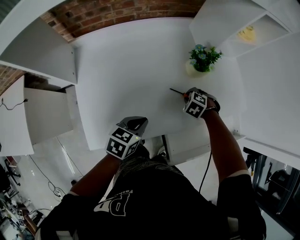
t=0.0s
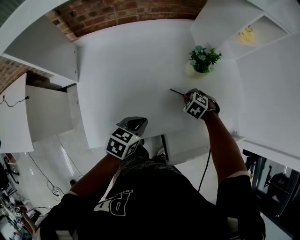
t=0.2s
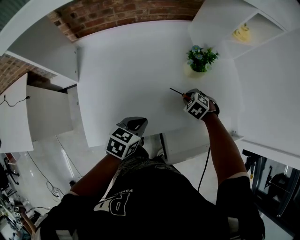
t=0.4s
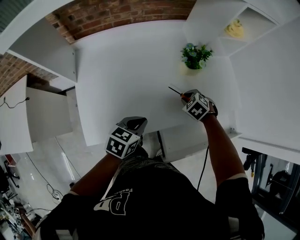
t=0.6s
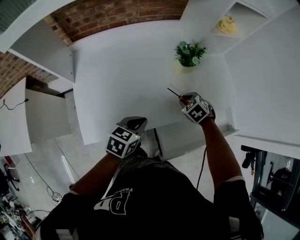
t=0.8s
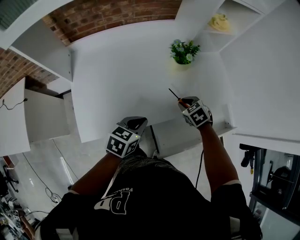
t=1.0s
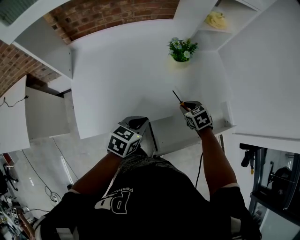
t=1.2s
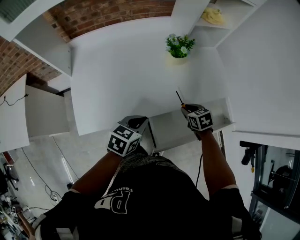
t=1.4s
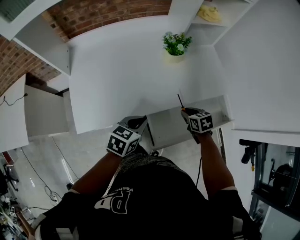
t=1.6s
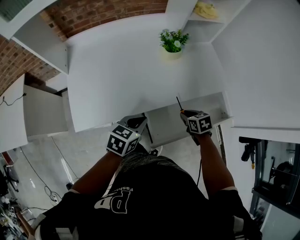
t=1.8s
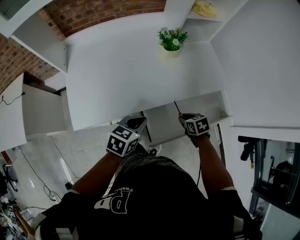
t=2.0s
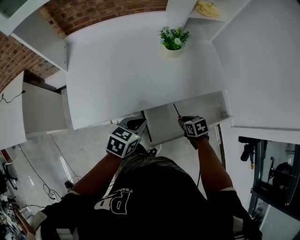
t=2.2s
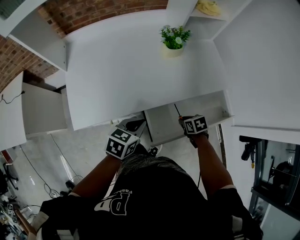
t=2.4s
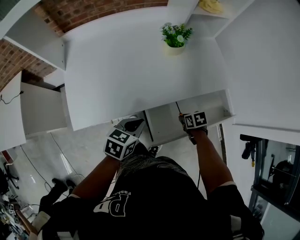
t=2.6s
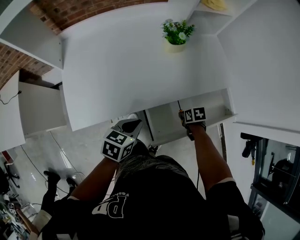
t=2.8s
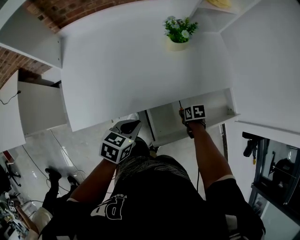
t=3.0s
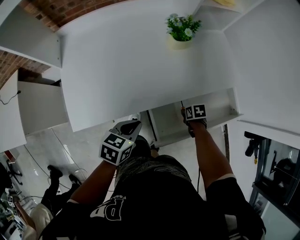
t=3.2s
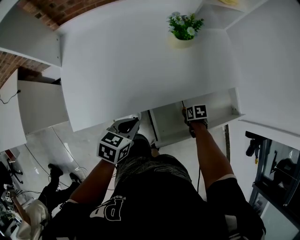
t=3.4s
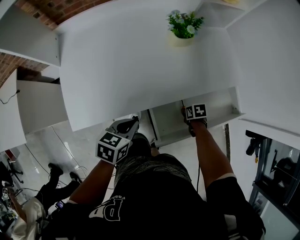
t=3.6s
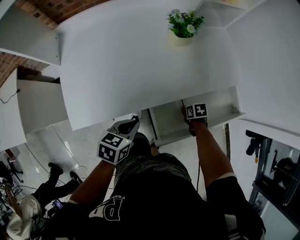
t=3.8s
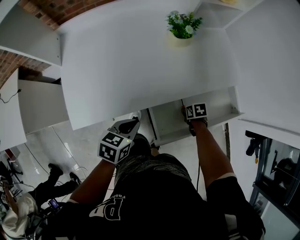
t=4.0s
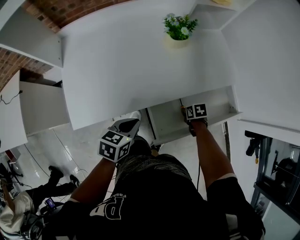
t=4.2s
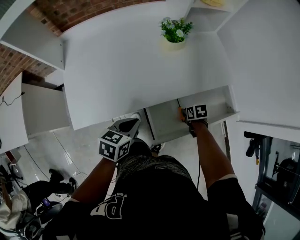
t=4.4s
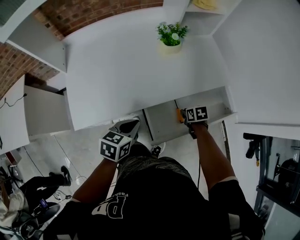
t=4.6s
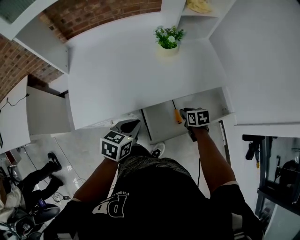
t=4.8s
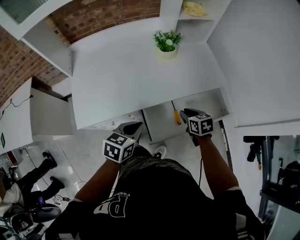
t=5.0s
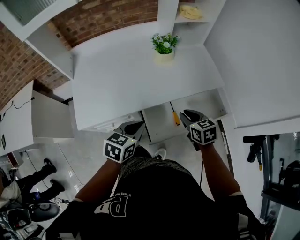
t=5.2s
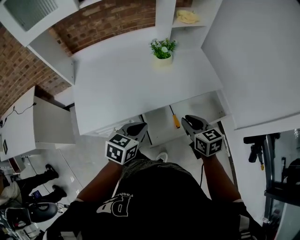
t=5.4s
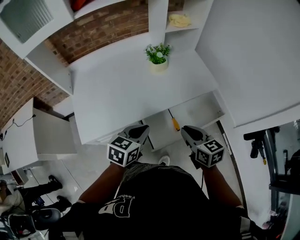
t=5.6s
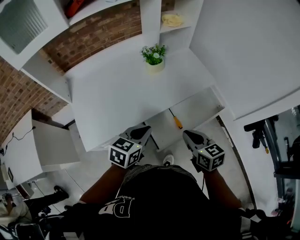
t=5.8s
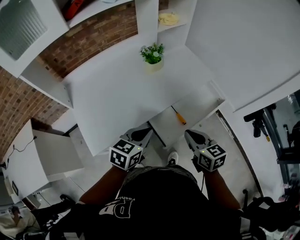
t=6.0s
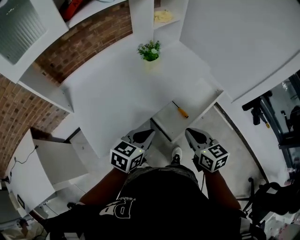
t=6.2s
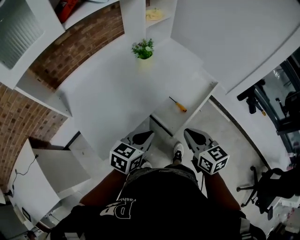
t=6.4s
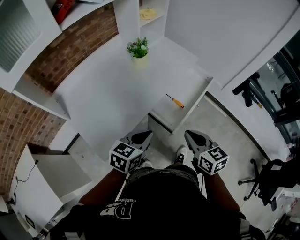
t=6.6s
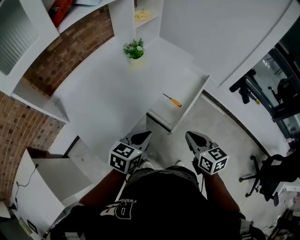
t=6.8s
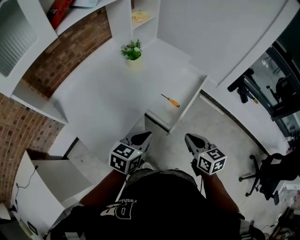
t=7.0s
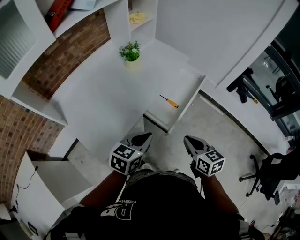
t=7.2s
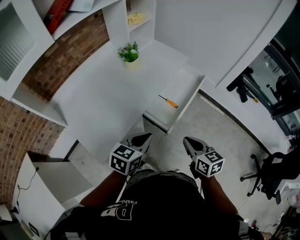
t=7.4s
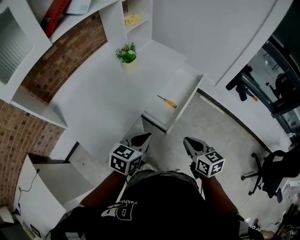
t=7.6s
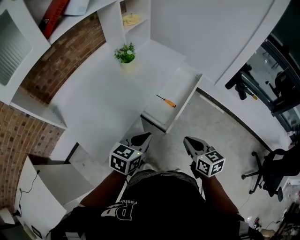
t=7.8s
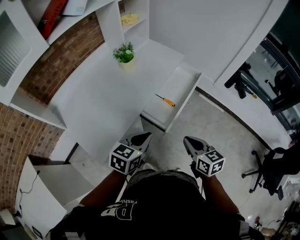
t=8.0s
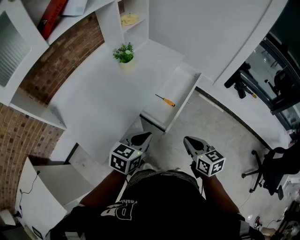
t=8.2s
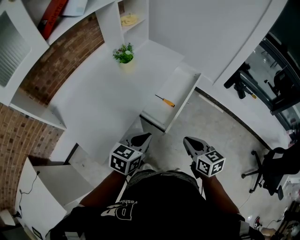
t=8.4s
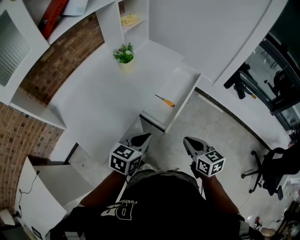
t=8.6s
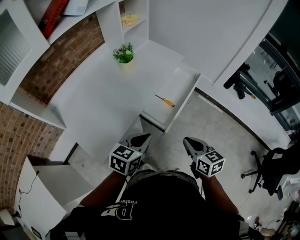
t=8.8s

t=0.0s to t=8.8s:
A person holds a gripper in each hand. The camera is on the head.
t=0.0s to t=1.4s: The left gripper shifts by approximately 15 cm. Meanwhile the right gripper changes place by some 20 cm, and rolls clockwise, seen from behind, by about 50 degrees.
t=1.4s to t=3.0s: The right gripper moves downward and backward, some 15 cm, and rotates some 30 degrees, while the left gripper ends up approximately 5 cm from where it was.
t=3.0s to t=4.4s: The grippers stay close to where they were, moving slightly.
t=4.4s to t=5.8s: The right gripper moves upward and backward, some 30 cm, and angles its fingers upward, by some 40 degrees; the left gripper travels upward and to the right by some 10 cm, and changes its angle by some 20 degrees.
t=5.8s to t=7.4s: The left gripper changes place by about 10 cm, and turns by roughly 30 degrees; the right gripper changes place by approximately 20 cm, and rotates some 30 degrees.
t=7.4s to t=8.8s: The grippers make only small movements.

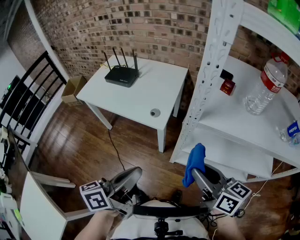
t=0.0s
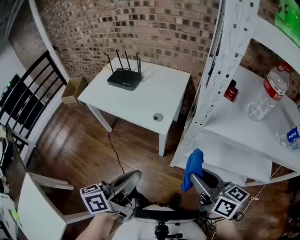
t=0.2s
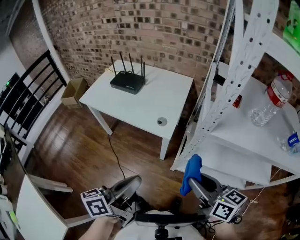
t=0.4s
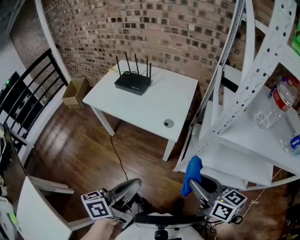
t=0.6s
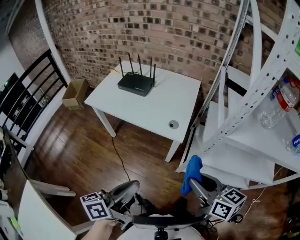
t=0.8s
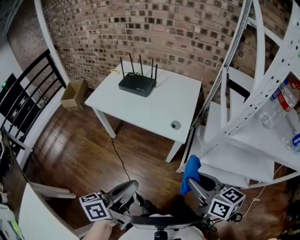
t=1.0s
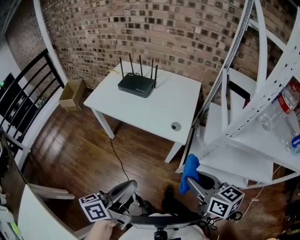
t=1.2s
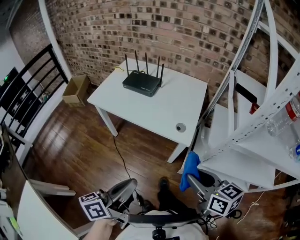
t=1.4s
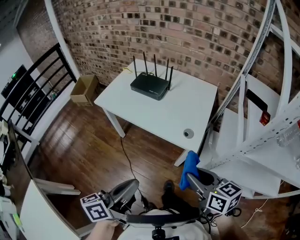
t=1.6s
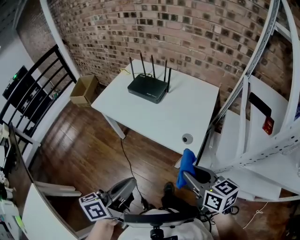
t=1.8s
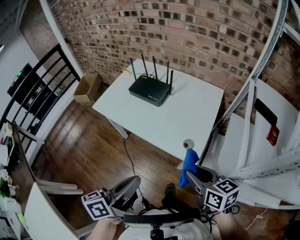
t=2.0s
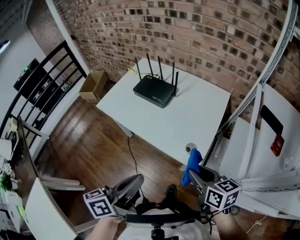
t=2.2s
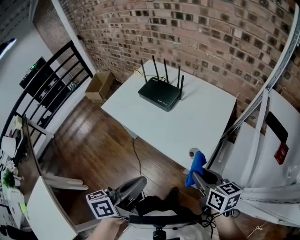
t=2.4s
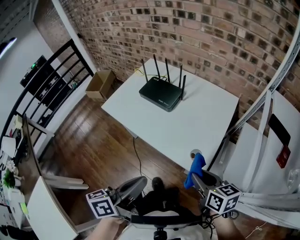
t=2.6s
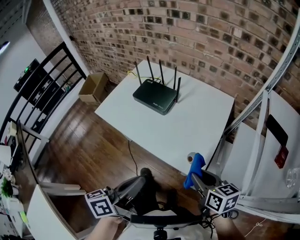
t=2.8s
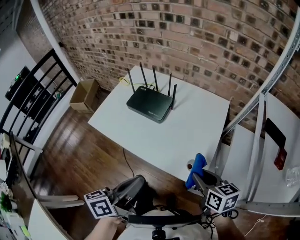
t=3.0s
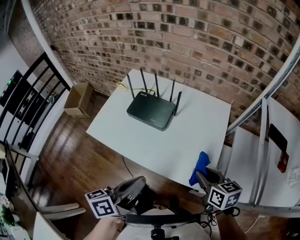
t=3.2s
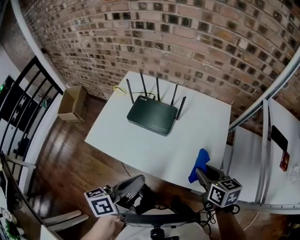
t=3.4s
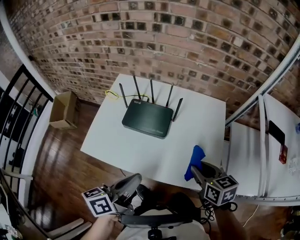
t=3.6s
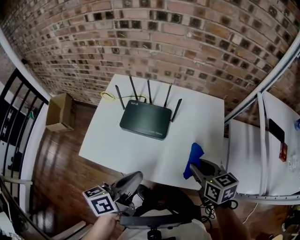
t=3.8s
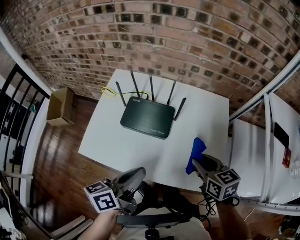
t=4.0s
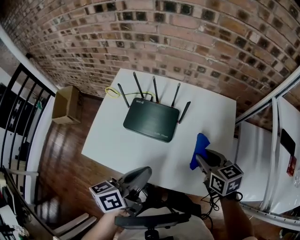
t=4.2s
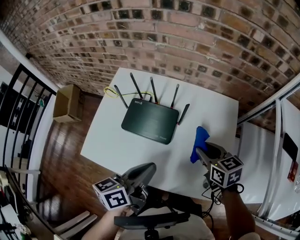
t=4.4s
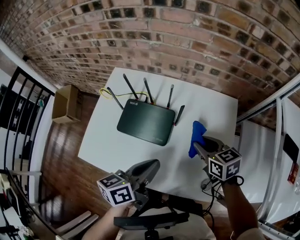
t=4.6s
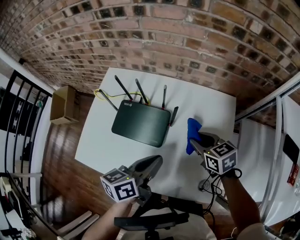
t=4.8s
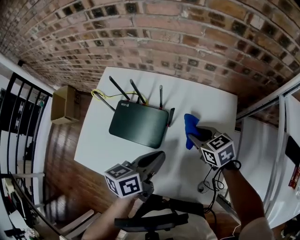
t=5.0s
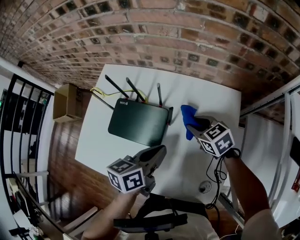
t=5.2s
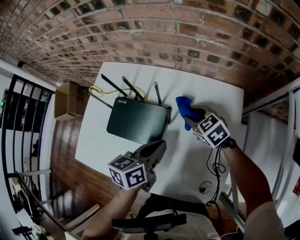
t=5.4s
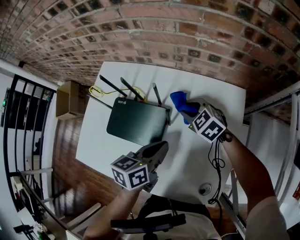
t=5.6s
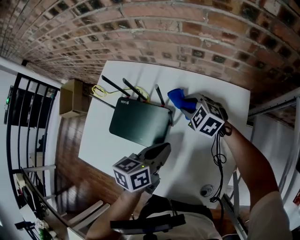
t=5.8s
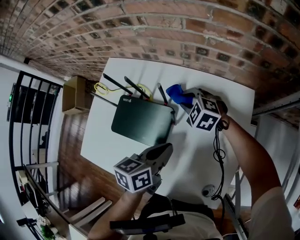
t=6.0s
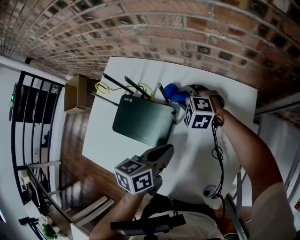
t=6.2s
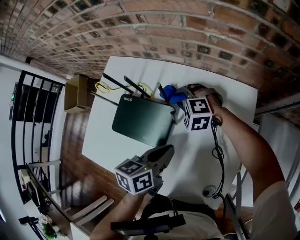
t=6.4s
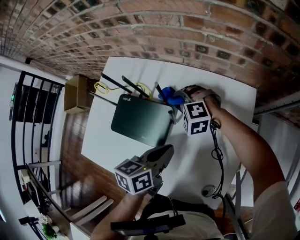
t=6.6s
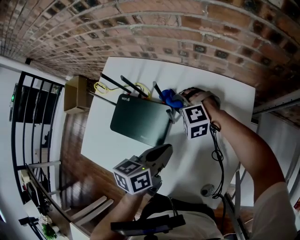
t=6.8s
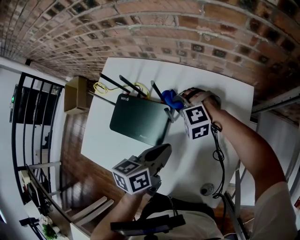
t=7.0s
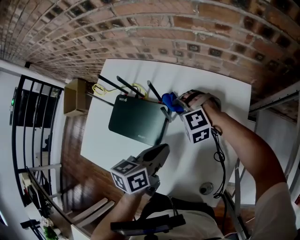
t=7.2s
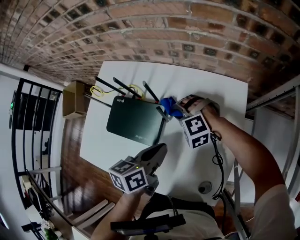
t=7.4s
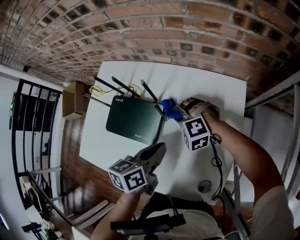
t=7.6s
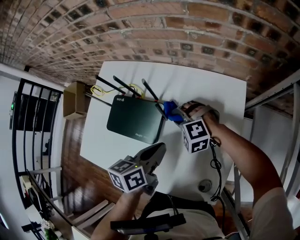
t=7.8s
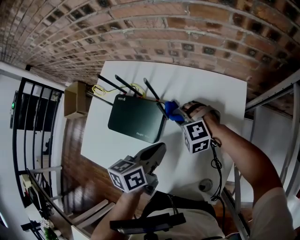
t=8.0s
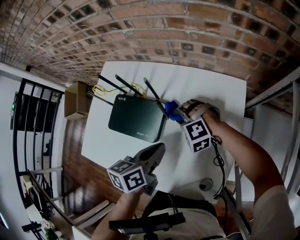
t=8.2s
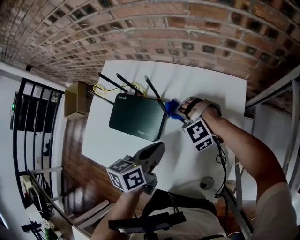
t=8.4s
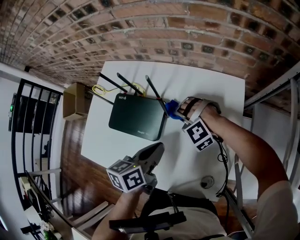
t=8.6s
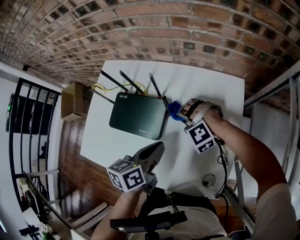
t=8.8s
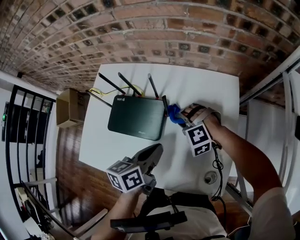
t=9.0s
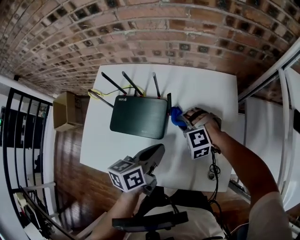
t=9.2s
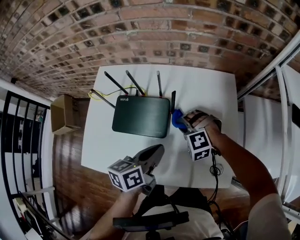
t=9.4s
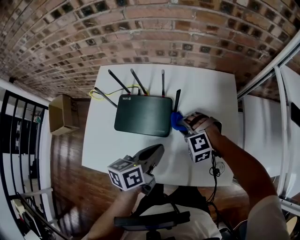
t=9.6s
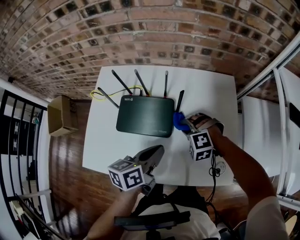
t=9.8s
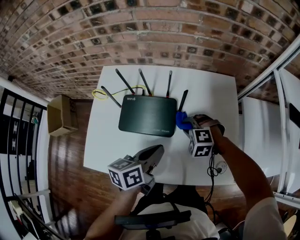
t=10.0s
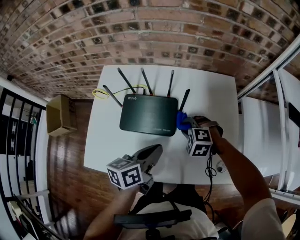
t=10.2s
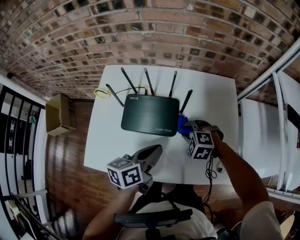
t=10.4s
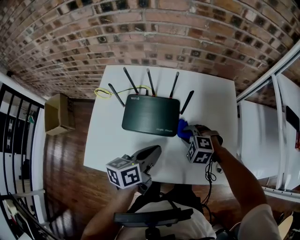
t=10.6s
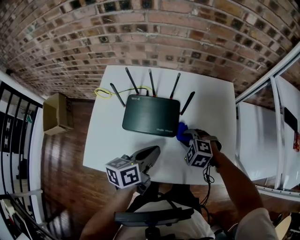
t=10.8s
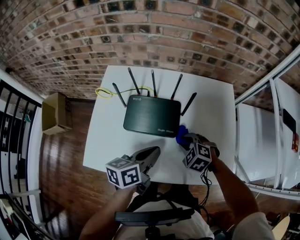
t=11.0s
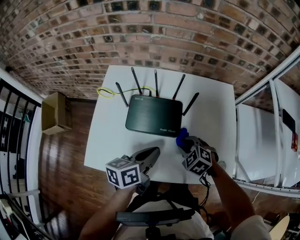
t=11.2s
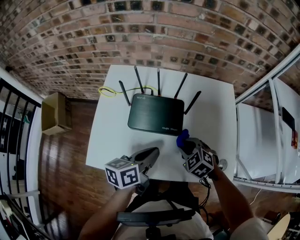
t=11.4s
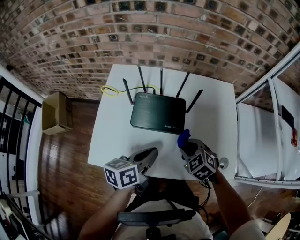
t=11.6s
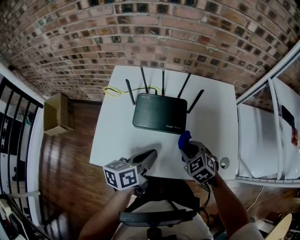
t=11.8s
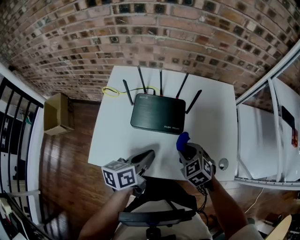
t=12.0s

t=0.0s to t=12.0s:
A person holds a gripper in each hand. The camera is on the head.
t=0.0s to t=1.6s: The left gripper moves to the left, some 25 cm. The right gripper shifts roughly 30 cm to the left and forward.
t=1.6s to t=3.0s: Both grippers move forward, about 25 cm.
t=3.0s to t=4.4s: The grippers both shift forward and to the left by about 30 cm.
t=4.4s to t=6.0s: The left gripper moves forward, to the right and downward, some 20 cm, while the right gripper moves forward and downward, roughly 25 cm, and twists some 50 degrees counterclockwise, seen from behind.
t=6.0s to t=7.6s: The right gripper shifts about 10 cm backward, and changes its angle by about 30 degrees.
t=7.6s to t=9.0s: The left gripper goes approximately 5 cm to the left. The right gripper travels backward by roughly 5 cm.
t=9.0s to t=10.4s: The right gripper is displaced backward and to the left by about 10 cm, and swivels some 30 degrees. Meanwhile the left gripper goes about 10 cm to the left.
t=10.4s to t=12.0s: The right gripper shifts approximately 10 cm backward, and turns by some 40 degrees. Meanwhile the left gripper travels to the left and backward by roughly 10 cm.

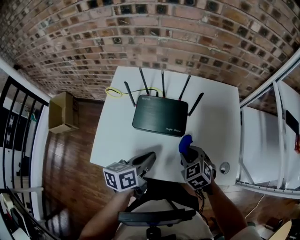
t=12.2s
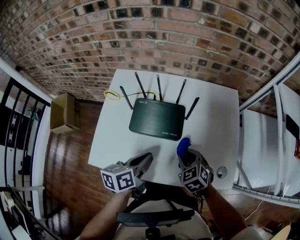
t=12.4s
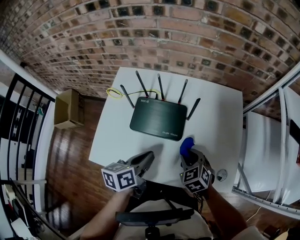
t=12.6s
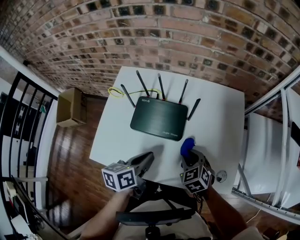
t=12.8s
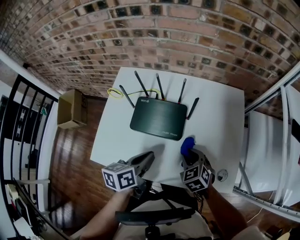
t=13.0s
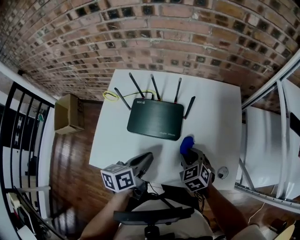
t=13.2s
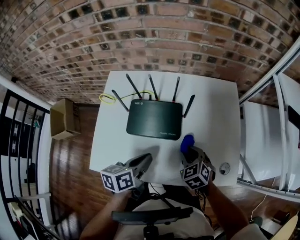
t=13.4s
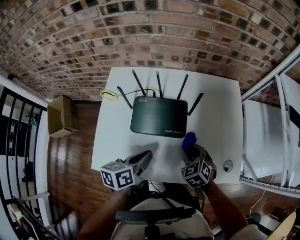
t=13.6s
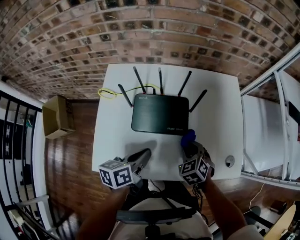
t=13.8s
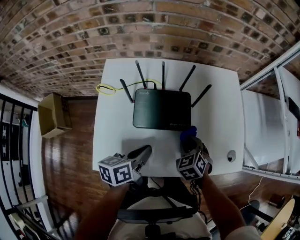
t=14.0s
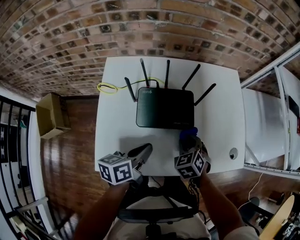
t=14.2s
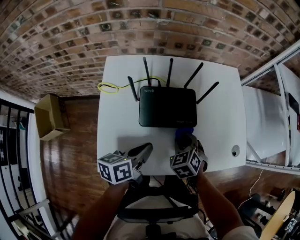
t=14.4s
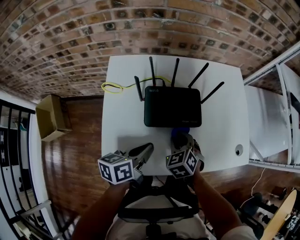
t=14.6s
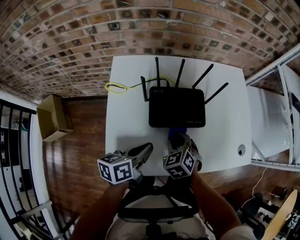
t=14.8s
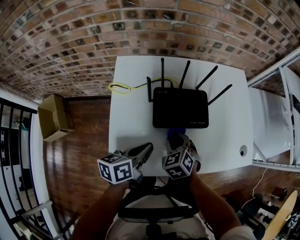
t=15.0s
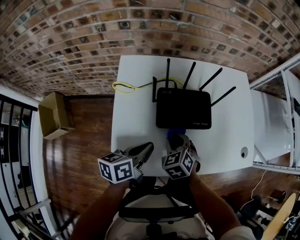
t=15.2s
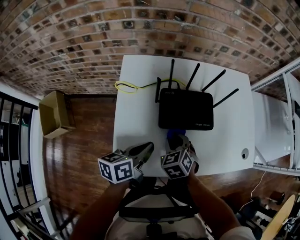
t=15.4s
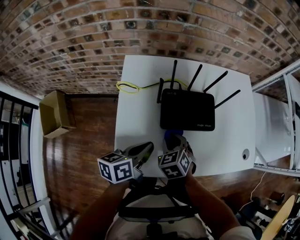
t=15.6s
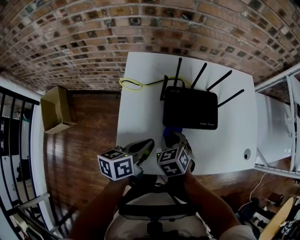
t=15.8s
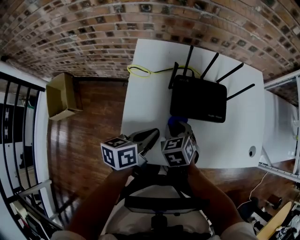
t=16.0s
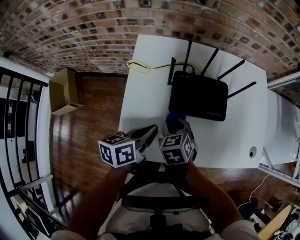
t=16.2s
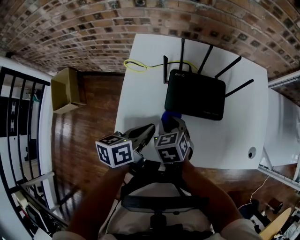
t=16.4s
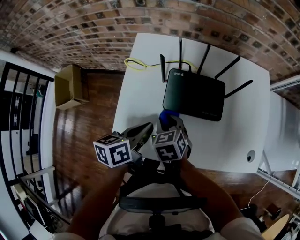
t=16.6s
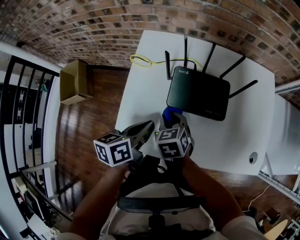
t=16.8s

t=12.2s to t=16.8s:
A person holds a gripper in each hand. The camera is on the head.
t=12.2s to t=13.8s: The left gripper moves some 5 cm.
t=13.8s to t=15.2s: The right gripper is displaced to the left by approximately 20 cm. The left gripper is displaced to the left by approximately 15 cm.
t=15.2s to t=16.8s: There are only small adjustments of the grippers.
